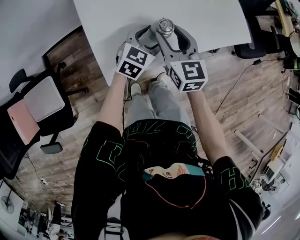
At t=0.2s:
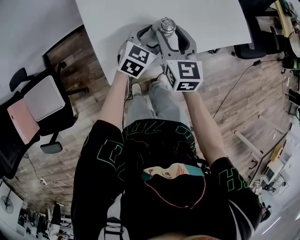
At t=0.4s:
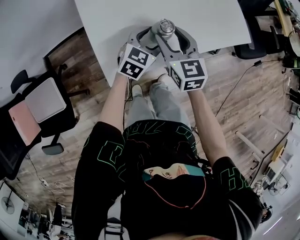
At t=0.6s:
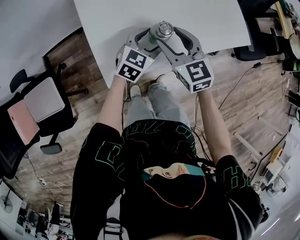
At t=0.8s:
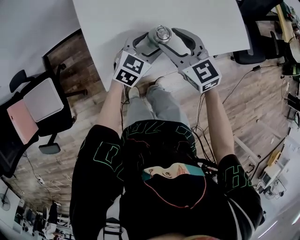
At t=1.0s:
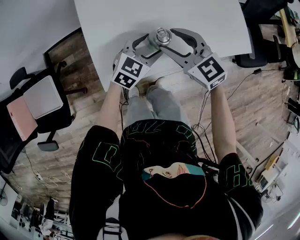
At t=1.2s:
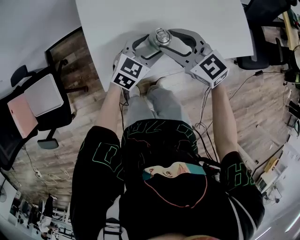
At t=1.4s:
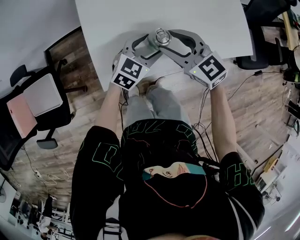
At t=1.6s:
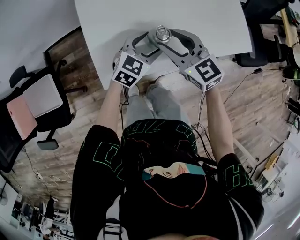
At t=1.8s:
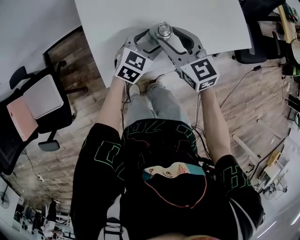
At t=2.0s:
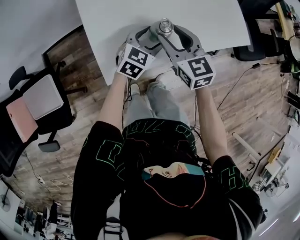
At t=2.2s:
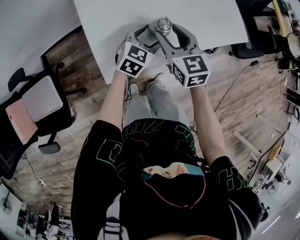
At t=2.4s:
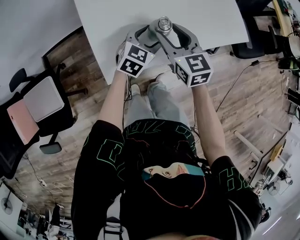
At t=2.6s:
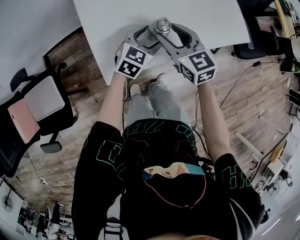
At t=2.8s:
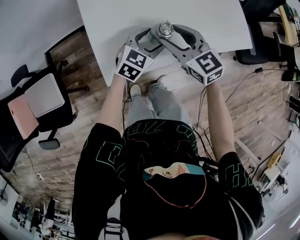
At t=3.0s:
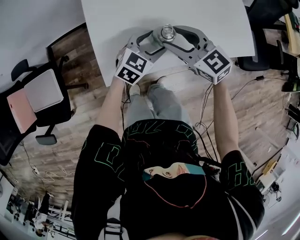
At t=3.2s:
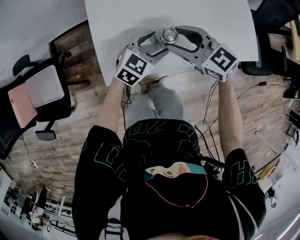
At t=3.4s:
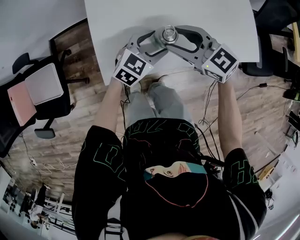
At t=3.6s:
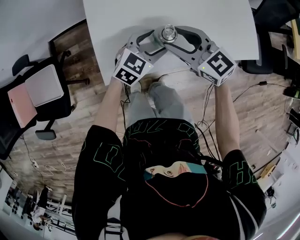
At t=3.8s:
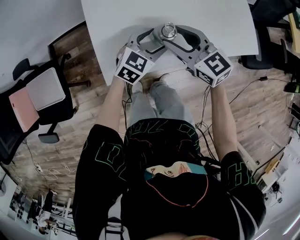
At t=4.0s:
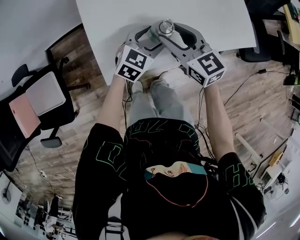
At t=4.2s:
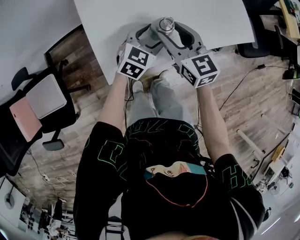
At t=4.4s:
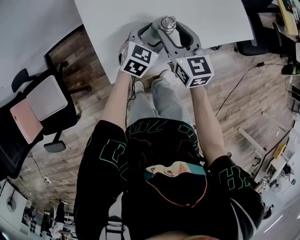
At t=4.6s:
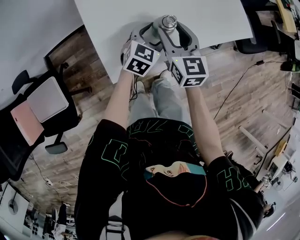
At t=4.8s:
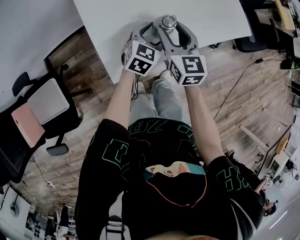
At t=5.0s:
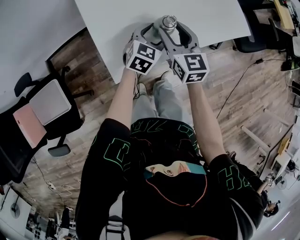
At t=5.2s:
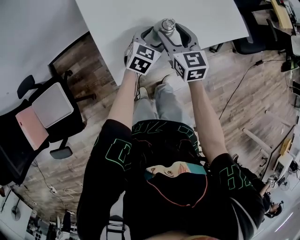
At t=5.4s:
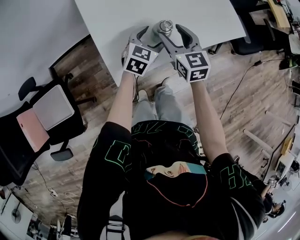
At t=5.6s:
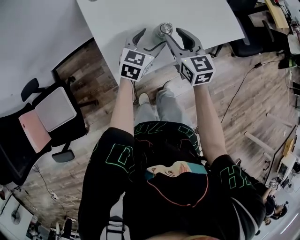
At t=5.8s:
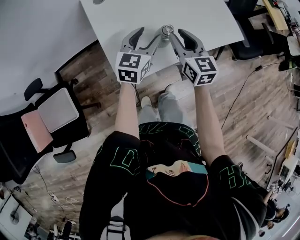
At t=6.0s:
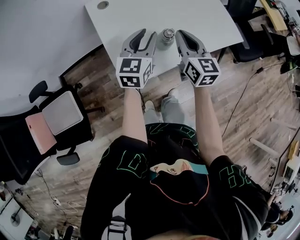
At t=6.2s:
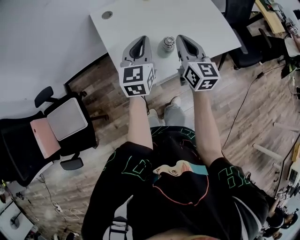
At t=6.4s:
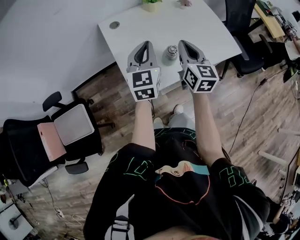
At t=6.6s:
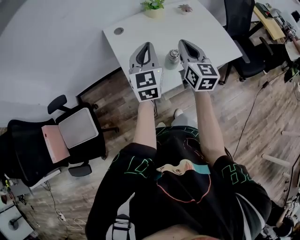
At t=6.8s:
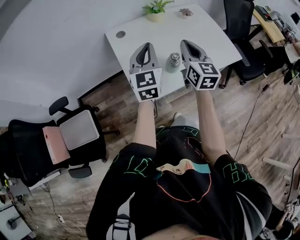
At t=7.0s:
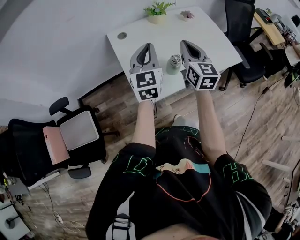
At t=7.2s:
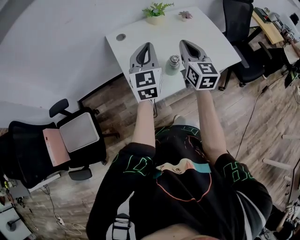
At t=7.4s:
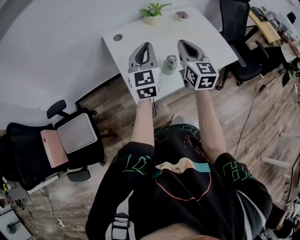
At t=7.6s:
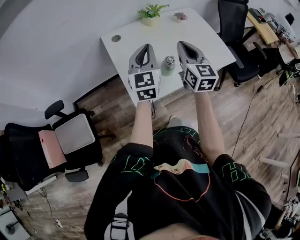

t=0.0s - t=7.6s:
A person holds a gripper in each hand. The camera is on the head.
t=0.0s - t=1.6s: The right gripper swivels approximately 30 degrees.
t=3.0s - t=4.6s: The right gripper swivels roughly 40 degrees.
t=4.6s - t=6.0s: The right gripper moves upward, about 10 cm, and closes its fingers. The left gripper goes roughly 20 cm upward and to the left, rotates some 30 degrees, and closes.
t=6.0s - t=7.6s: The two grippers go roughly 10 cm upward. The left gripper closes up.

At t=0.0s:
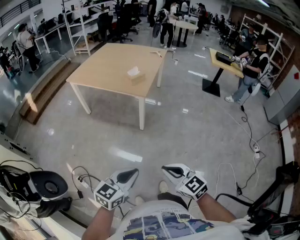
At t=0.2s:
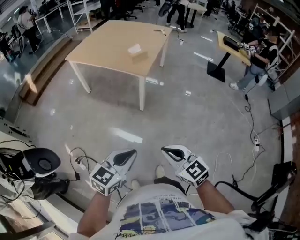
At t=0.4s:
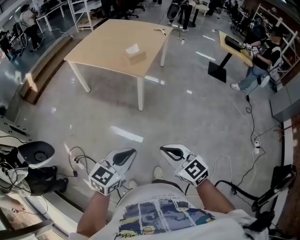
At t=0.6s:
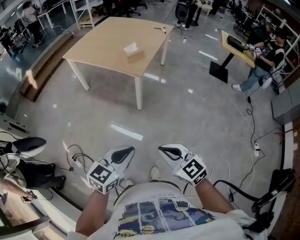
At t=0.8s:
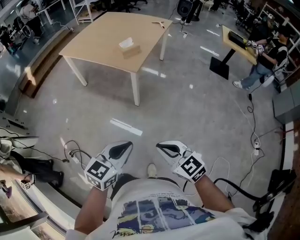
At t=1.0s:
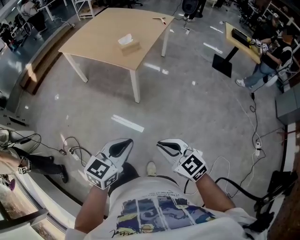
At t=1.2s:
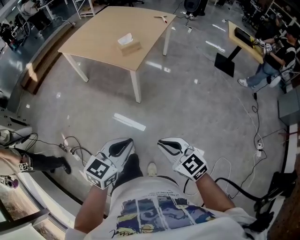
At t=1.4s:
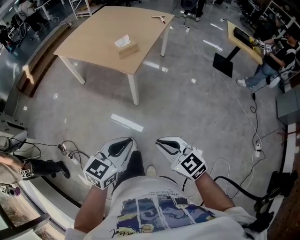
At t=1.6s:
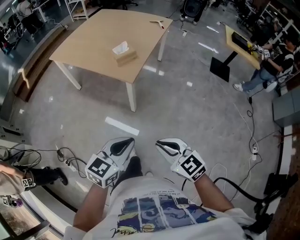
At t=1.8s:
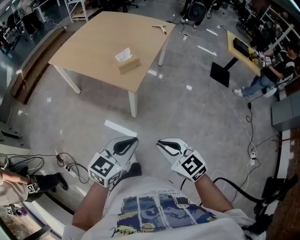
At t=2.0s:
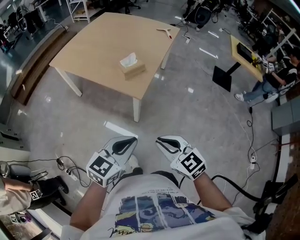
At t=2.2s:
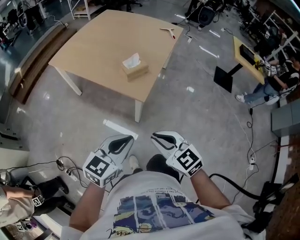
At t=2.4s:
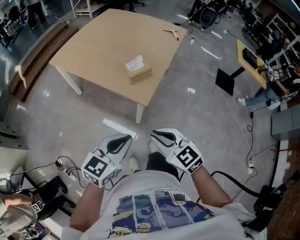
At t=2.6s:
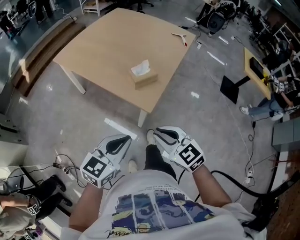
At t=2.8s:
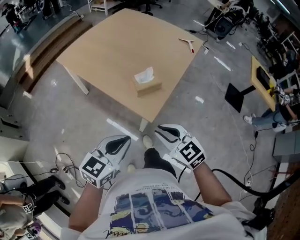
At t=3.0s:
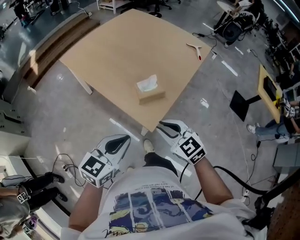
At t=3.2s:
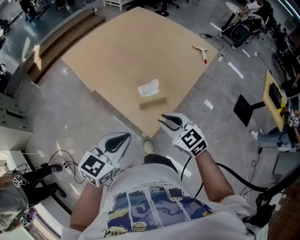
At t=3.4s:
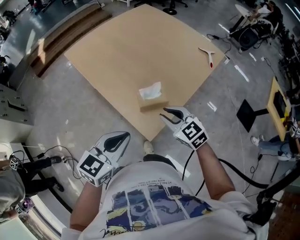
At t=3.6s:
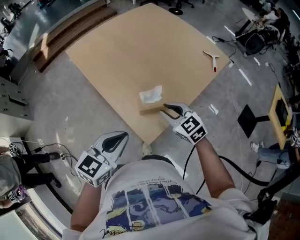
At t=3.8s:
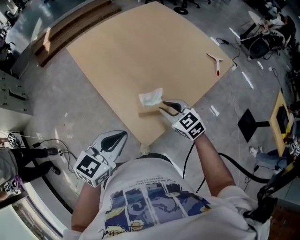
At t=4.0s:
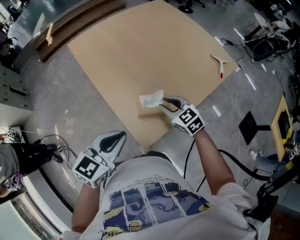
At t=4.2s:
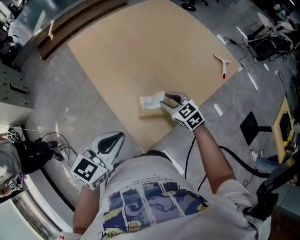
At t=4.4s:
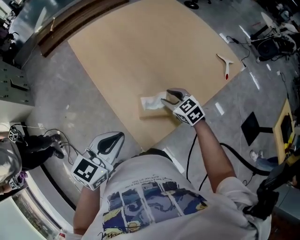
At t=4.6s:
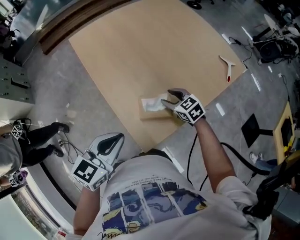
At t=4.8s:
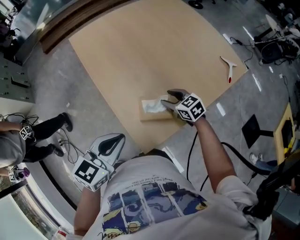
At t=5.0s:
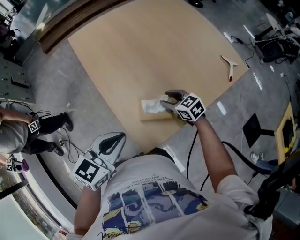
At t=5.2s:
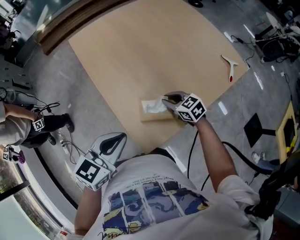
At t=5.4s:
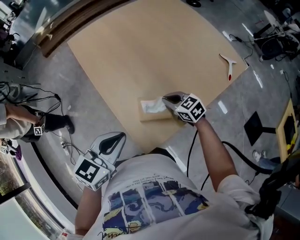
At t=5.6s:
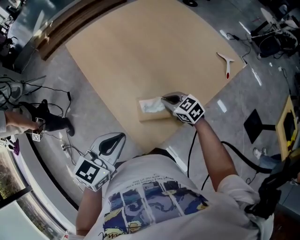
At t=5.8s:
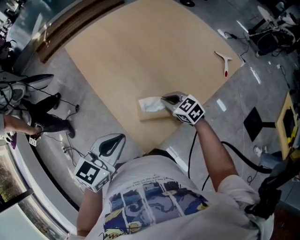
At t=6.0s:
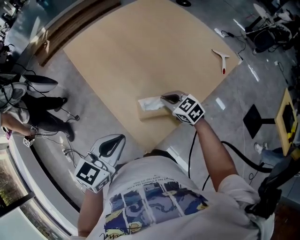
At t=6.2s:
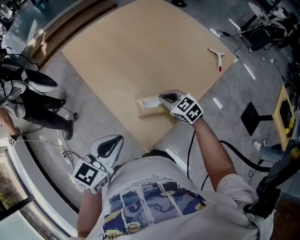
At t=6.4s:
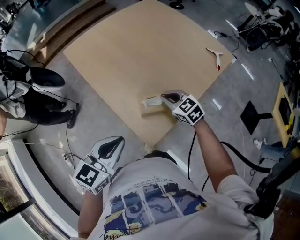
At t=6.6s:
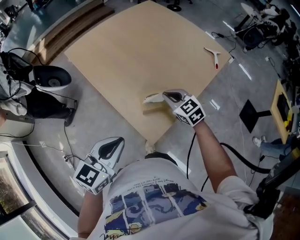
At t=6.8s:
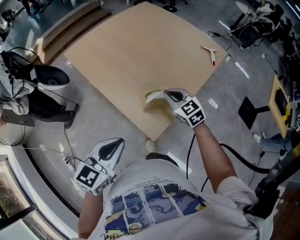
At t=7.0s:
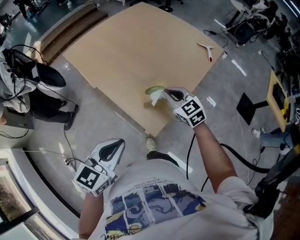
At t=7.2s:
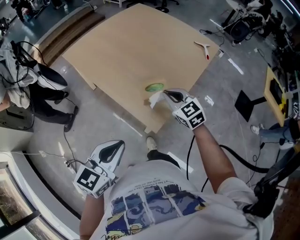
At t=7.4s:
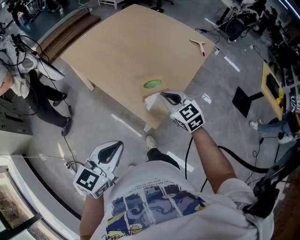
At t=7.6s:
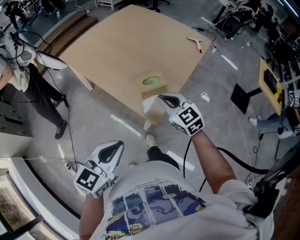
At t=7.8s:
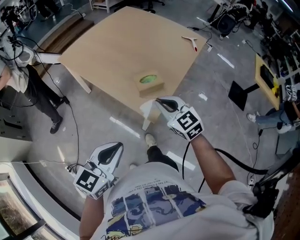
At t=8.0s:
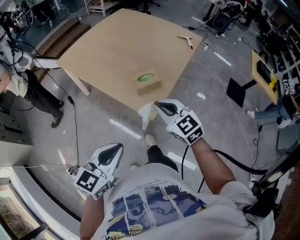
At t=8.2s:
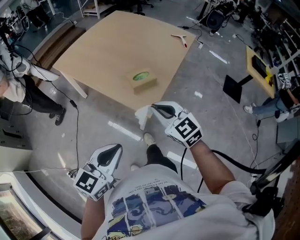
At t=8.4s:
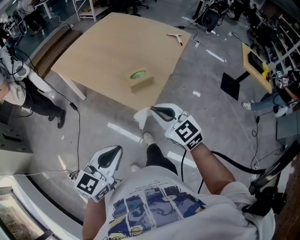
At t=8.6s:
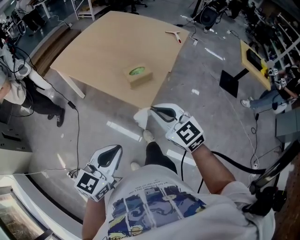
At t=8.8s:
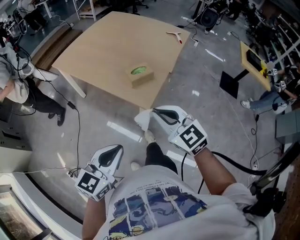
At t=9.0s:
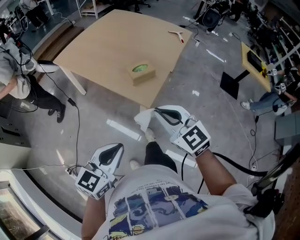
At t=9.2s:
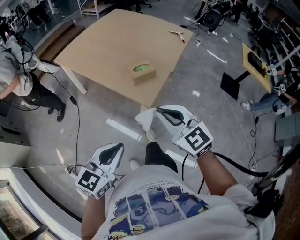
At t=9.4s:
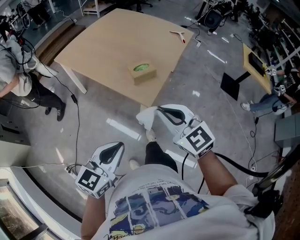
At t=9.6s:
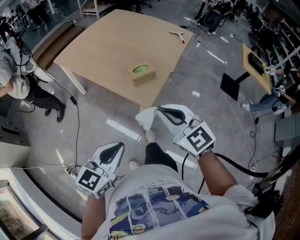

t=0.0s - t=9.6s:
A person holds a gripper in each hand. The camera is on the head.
t=0.0s - t=1.6s: Both grippers move forward and to the right, about 30 cm.
t=1.6s - t=3.2s: The two grippers go approximately 40 cm forward.
t=3.2s - t=4.8s: The right gripper shifts roughly 25 cm forward and downward, rotates roughly 20 degrees, and opens up; the left gripper moves forward, about 10 cm.
t=4.8s - t=6.4s: The left gripper moves approximately 5 cm, while the right gripper moves upward, approximately 5 cm, and closes its fingers.
t=6.4s - t=8.0s: The left gripper goes some 15 cm backward, while the right gripper shifts some 25 cm backward and upward, and changes its angle by approximately 20 degrees.
t=8.0s - t=9.6s: The left gripper moves backward, some 5 cm; the right gripper moves backward and upward, approximately 15 cm.

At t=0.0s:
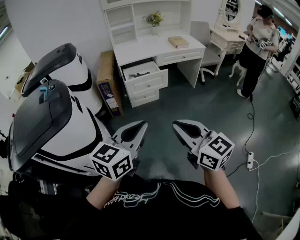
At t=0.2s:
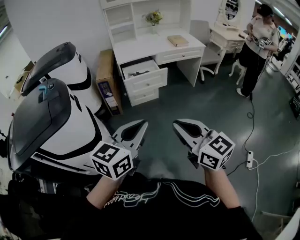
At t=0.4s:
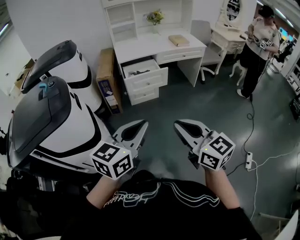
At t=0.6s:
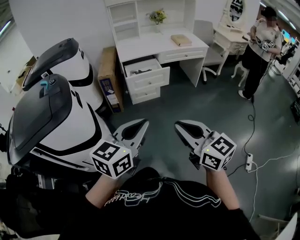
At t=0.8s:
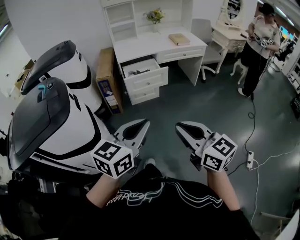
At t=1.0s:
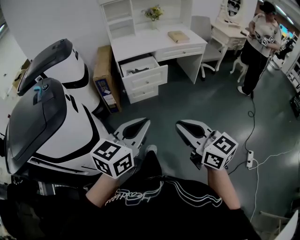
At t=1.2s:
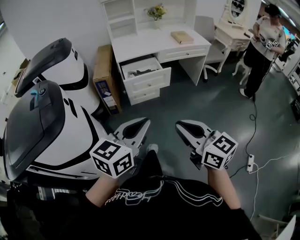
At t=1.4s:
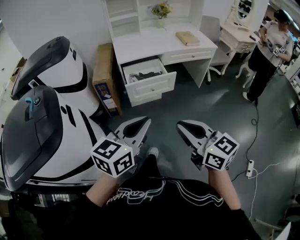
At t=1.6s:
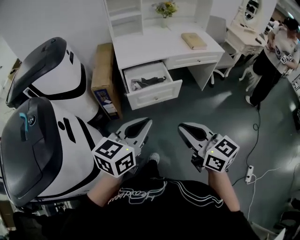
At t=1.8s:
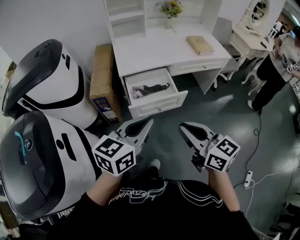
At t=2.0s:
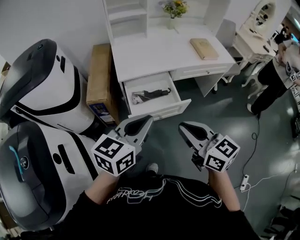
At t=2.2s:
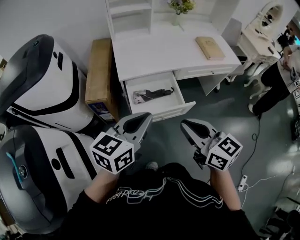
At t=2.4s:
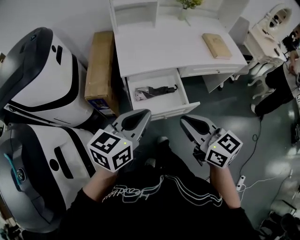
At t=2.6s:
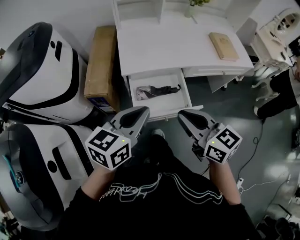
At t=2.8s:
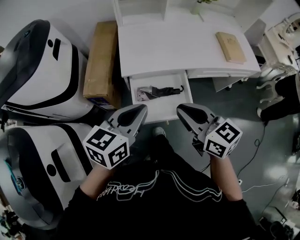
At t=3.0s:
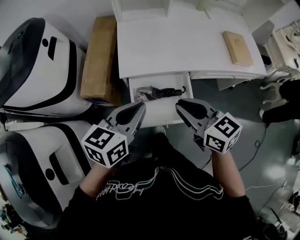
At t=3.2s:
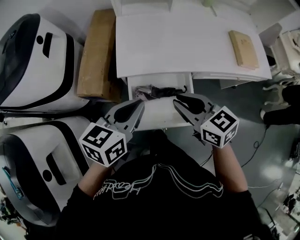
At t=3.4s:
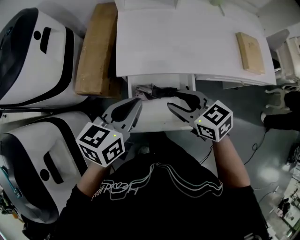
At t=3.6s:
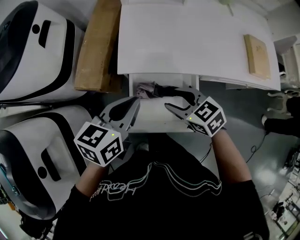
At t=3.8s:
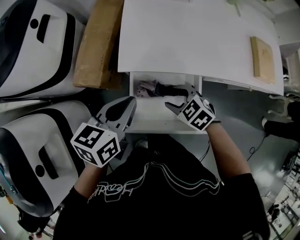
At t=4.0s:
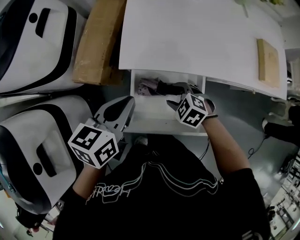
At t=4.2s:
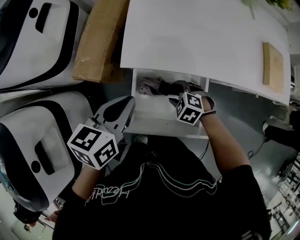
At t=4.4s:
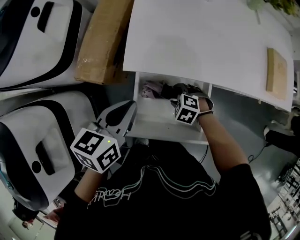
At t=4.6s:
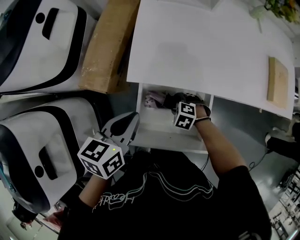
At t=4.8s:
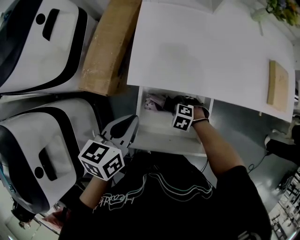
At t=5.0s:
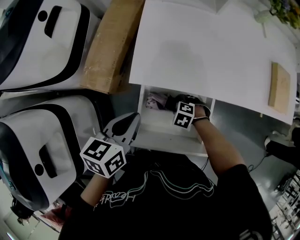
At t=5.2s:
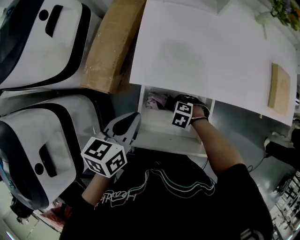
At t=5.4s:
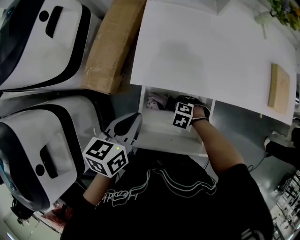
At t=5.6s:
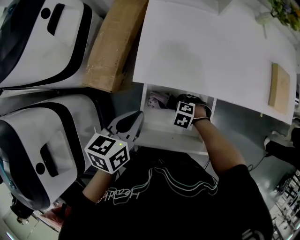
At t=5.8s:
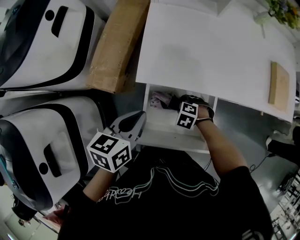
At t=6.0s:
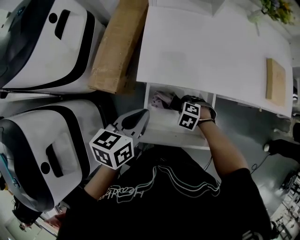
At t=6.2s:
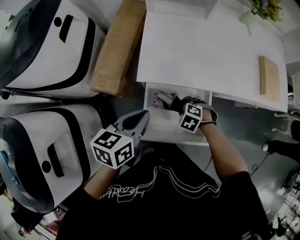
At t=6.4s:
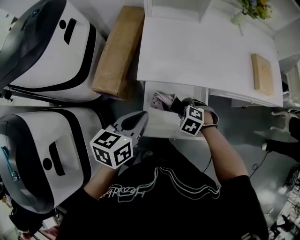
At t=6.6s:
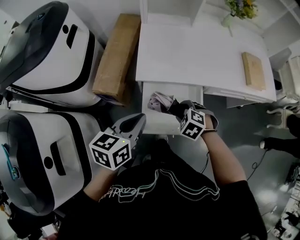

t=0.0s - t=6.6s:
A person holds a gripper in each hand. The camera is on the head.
t=0.0s - t=1.6s: The grippers both shift forward by some 30 cm.
t=1.6s - t=3.2s: The pair of grippers is taken forward, about 50 cm. The left gripper rotates approximately 20 degrees. Meanwhile the right gripper swivels approximately 30 degrees.
t=3.2s - t=5.0s: The right gripper goes some 35 cm downward, points its fingers about 50 degrees further downward, and opens its fingers; the left gripper travels downward by some 10 cm, and turns by roughly 20 degrees.
t=5.0s - t=6.6s: The left gripper ends up approximately 15 cm from where it was. Meanwhile the right gripper goes some 20 cm upward, and rotates approximately 20 degrees.
